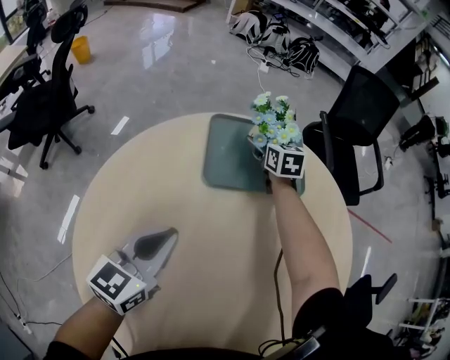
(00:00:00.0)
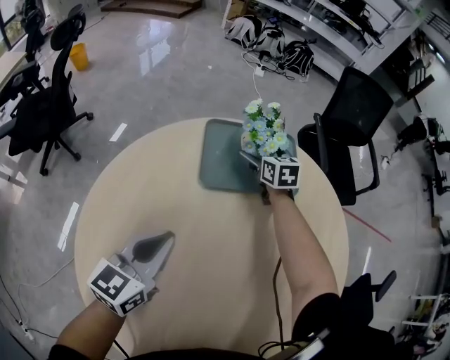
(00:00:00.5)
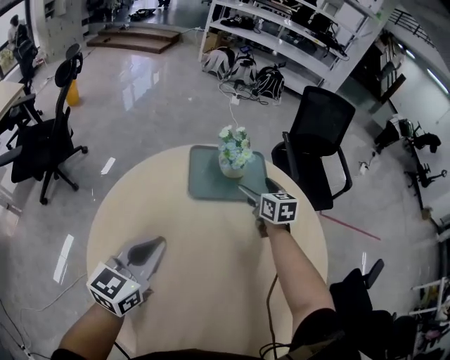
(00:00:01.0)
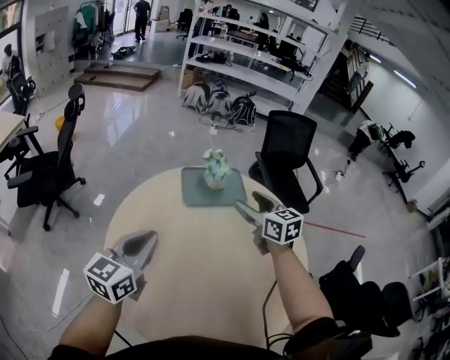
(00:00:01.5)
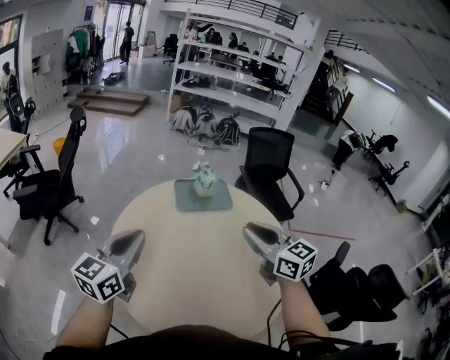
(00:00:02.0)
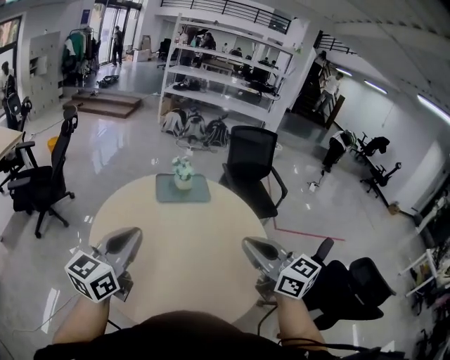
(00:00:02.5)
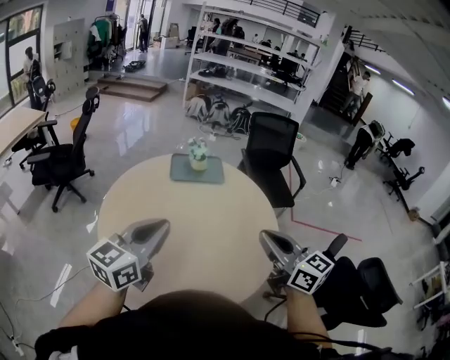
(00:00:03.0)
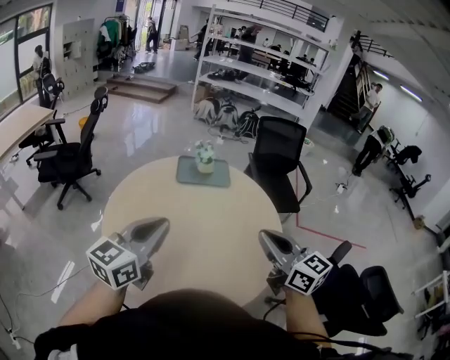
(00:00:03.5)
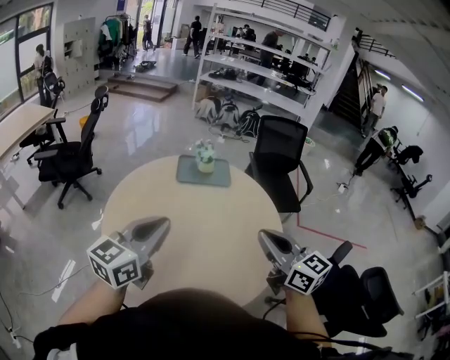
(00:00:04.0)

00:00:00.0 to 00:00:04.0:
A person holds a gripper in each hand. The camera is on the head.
00:00:00.0 to 00:00:02.0: The right gripper travels backward and upward by approximately 70 cm, rotates roughly 30 degrees, and closes up. Meanwhile the left gripper travels upward and backward by about 40 cm.
00:00:02.0 to 00:00:04.0: The right gripper goes approximately 20 cm backward and to the right, while the left gripper shifts about 25 cm to the right and backward.

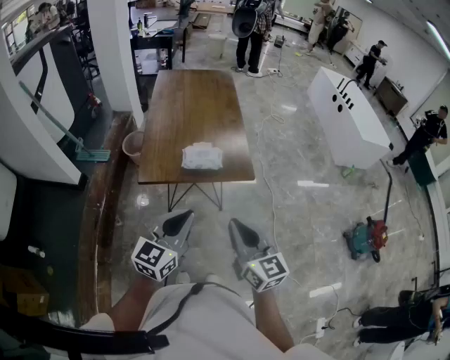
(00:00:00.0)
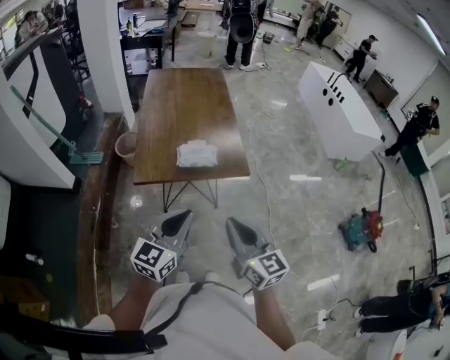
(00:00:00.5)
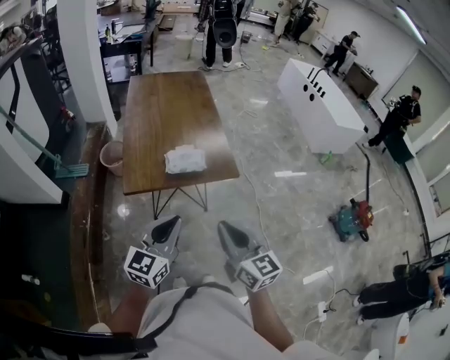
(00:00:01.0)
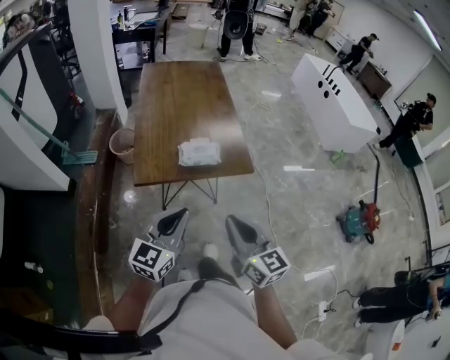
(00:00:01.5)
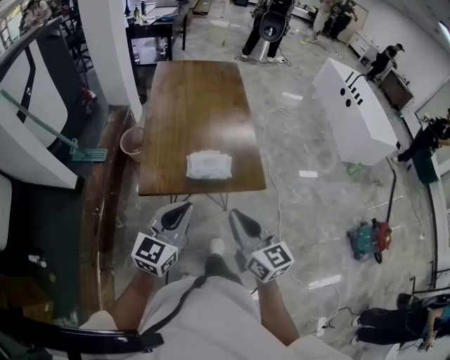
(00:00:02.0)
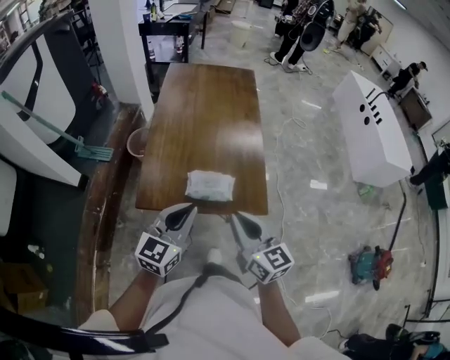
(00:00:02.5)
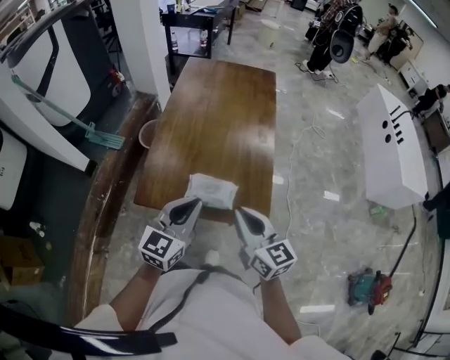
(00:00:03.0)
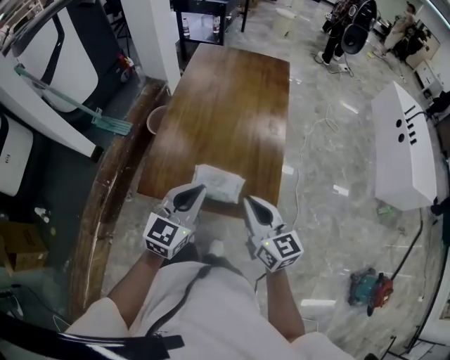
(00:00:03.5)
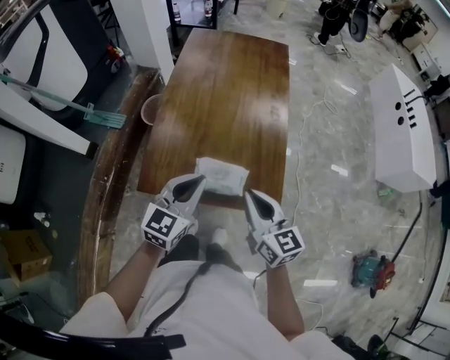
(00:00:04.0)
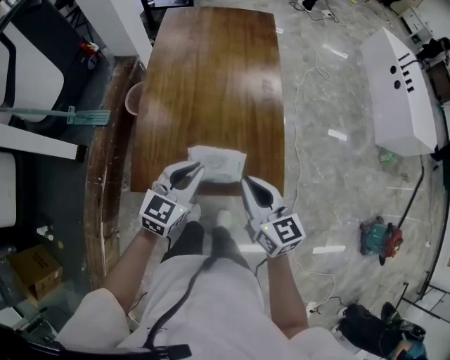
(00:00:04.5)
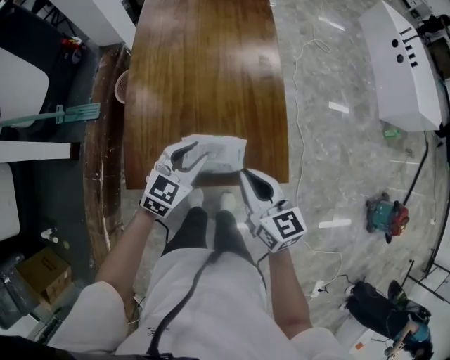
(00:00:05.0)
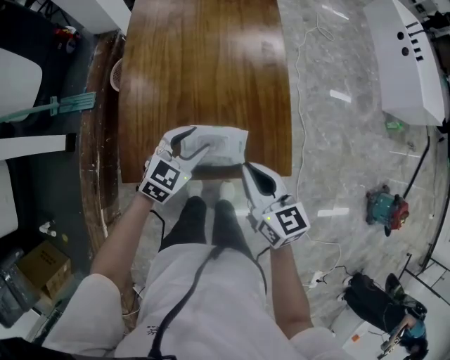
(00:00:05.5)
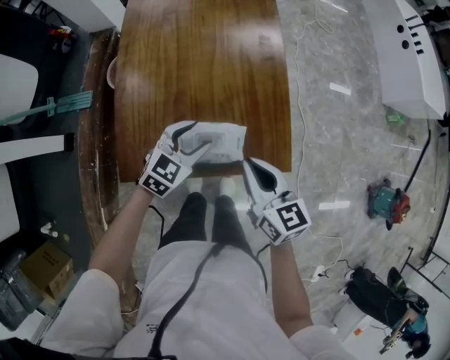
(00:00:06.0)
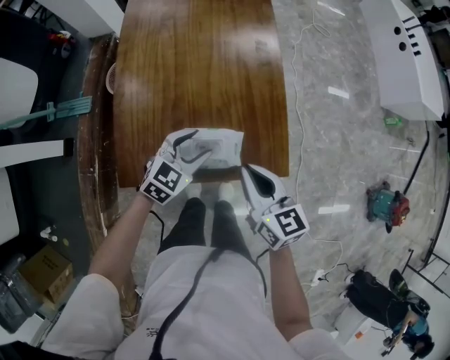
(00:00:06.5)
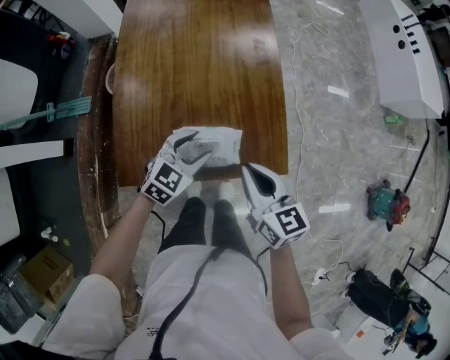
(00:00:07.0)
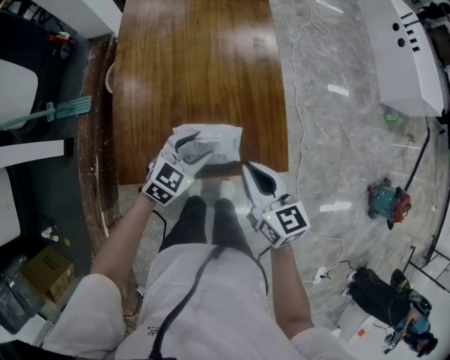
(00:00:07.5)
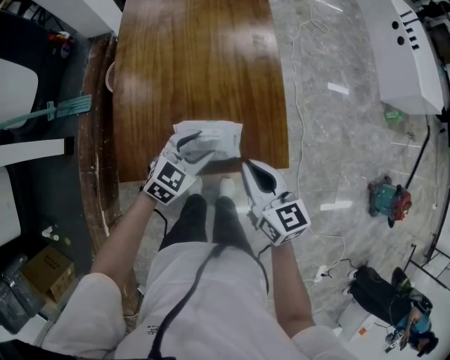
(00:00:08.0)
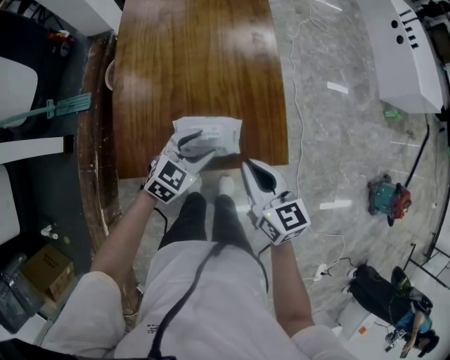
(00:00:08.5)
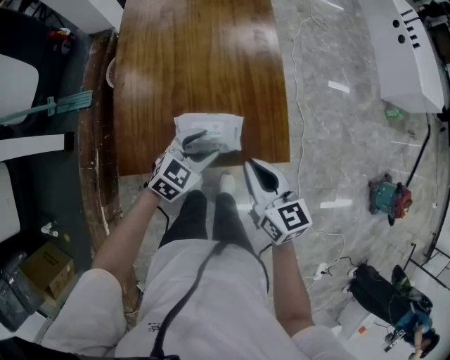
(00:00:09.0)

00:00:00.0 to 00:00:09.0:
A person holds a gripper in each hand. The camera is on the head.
00:00:00.0 to 00:00:02.0: Both grippers travel together forward, about 15 cm.
00:00:02.0 to 00:00:04.5: The left gripper goes approximately 25 cm forward and downward. The right gripper shifts about 25 cm forward.
00:00:04.5 to 00:00:07.0: The left gripper travels downward by roughly 15 cm, rotates about 20 degrees, and opens its fingers. The right gripper moves downward, approximately 5 cm.
00:00:07.0 to 00:00:09.0: The grippers stay close to where they were, moving slightly.

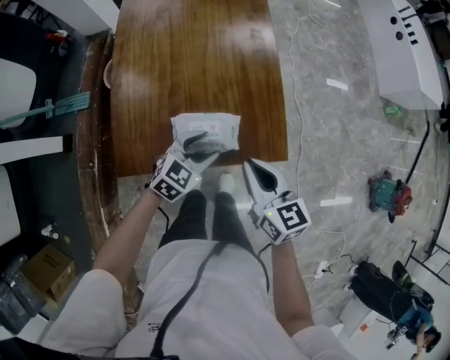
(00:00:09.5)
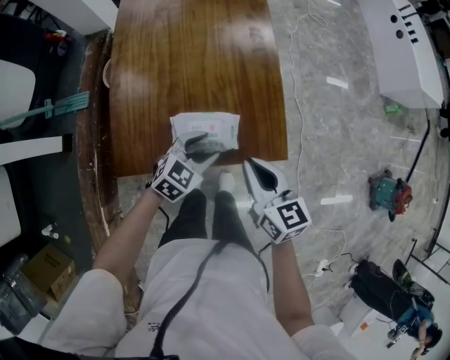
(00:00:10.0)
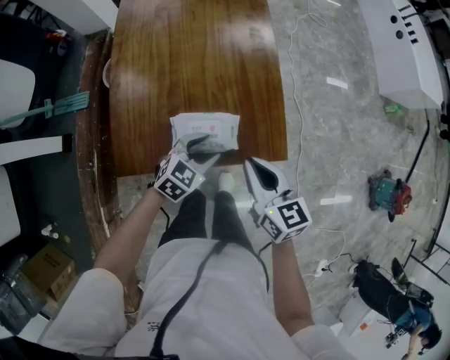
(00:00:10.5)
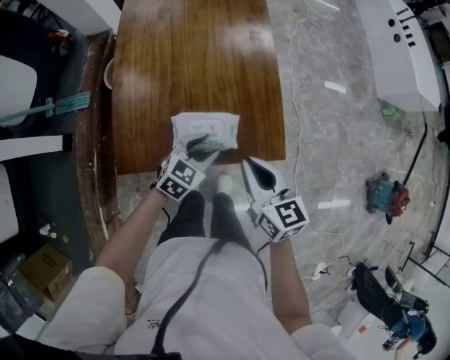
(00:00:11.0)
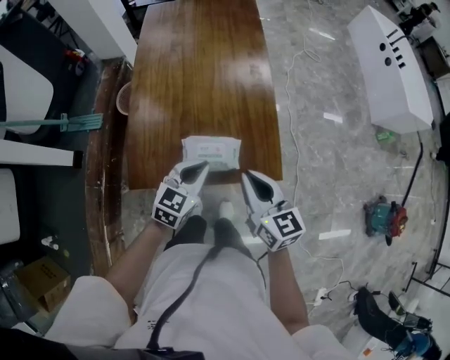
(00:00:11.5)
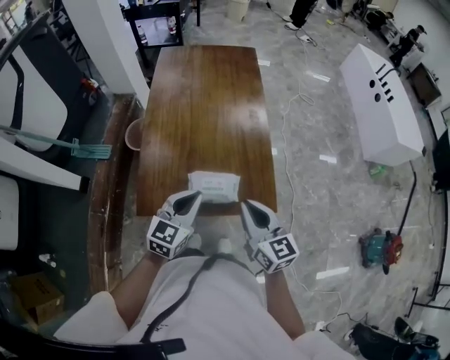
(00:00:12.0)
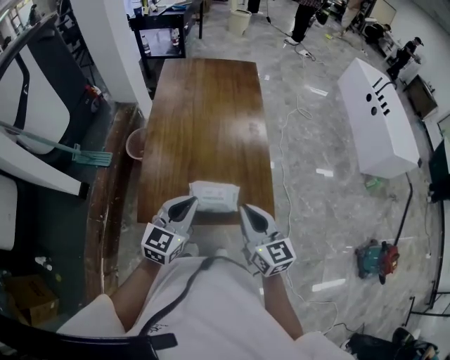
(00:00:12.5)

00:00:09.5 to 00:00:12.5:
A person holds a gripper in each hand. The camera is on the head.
00:00:09.5 to 00:00:11.0: The grippers move only a little.
00:00:11.0 to 00:00:12.5: The left gripper shifts roughly 20 cm upward, rotates roughly 30 degrees, and closes up, while the right gripper is displaced upward by about 10 cm.

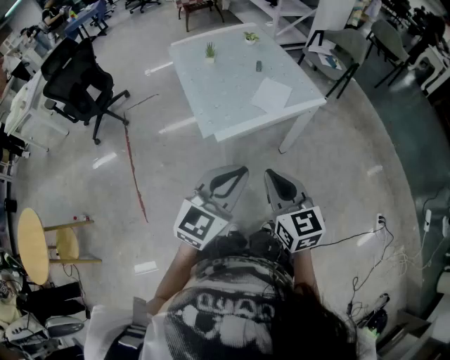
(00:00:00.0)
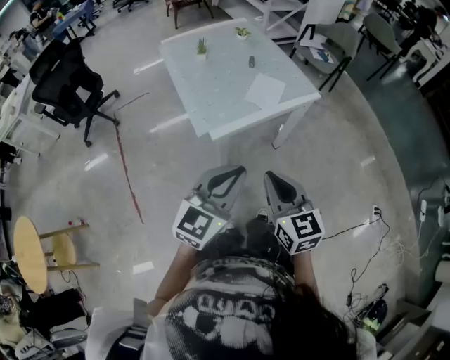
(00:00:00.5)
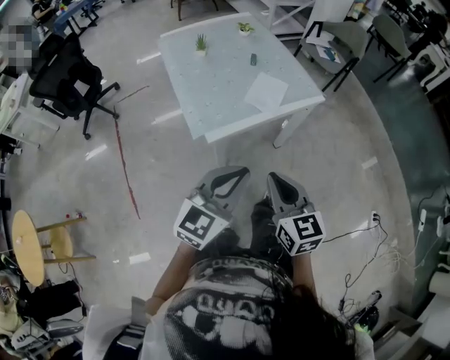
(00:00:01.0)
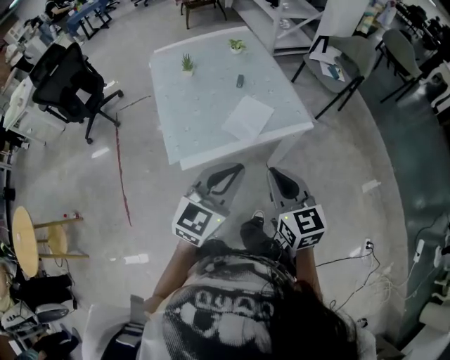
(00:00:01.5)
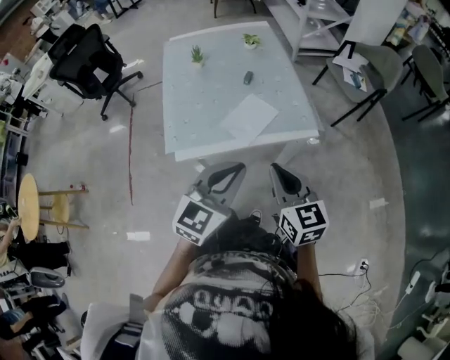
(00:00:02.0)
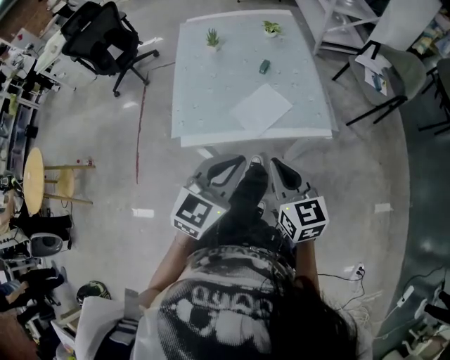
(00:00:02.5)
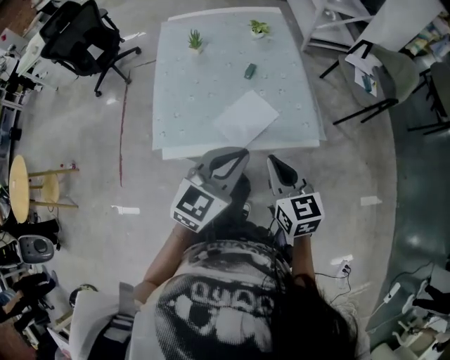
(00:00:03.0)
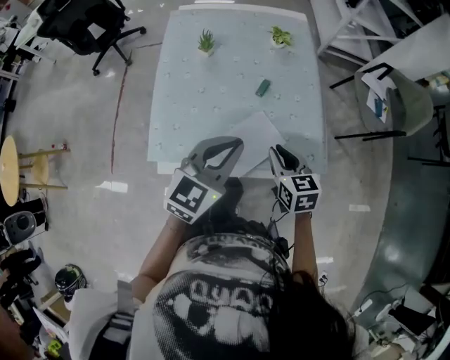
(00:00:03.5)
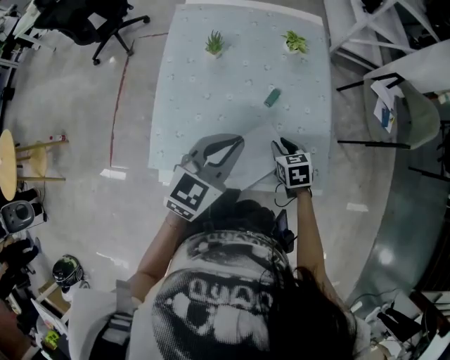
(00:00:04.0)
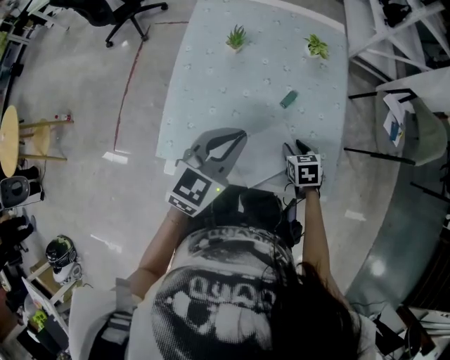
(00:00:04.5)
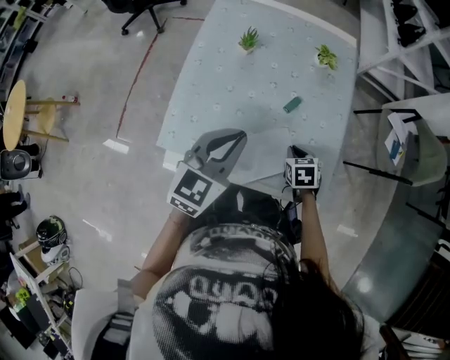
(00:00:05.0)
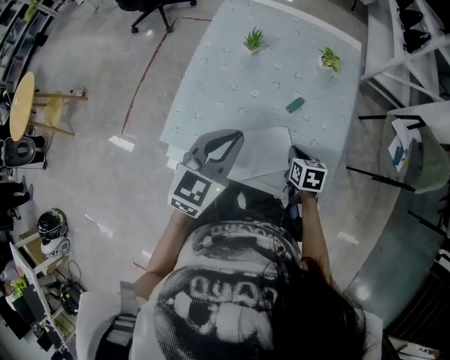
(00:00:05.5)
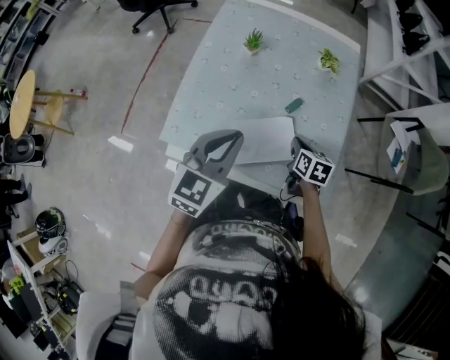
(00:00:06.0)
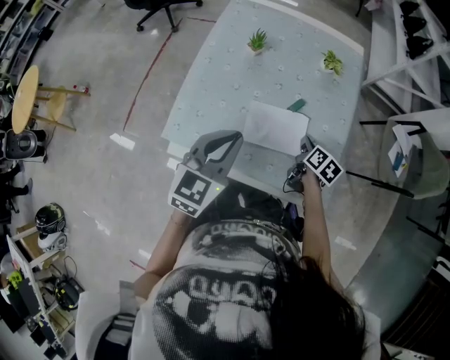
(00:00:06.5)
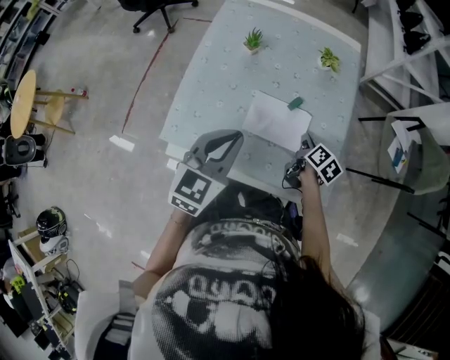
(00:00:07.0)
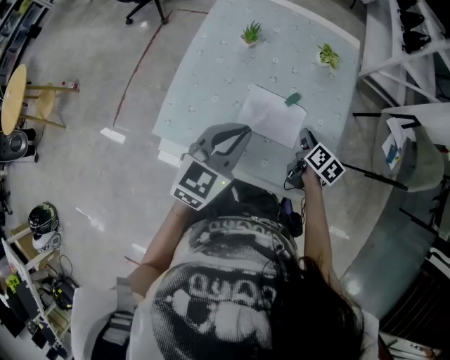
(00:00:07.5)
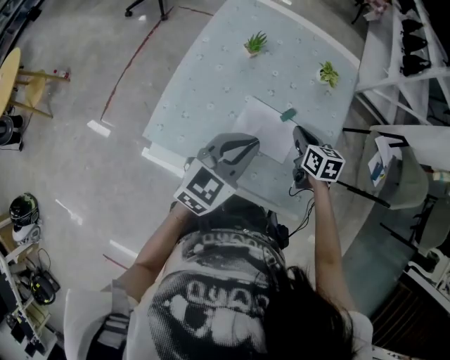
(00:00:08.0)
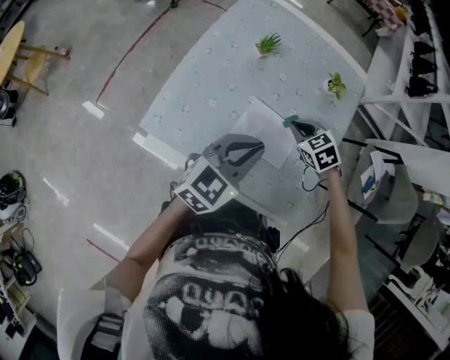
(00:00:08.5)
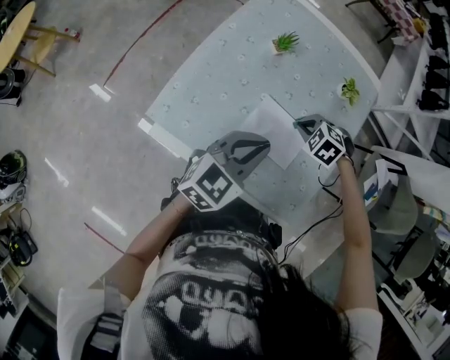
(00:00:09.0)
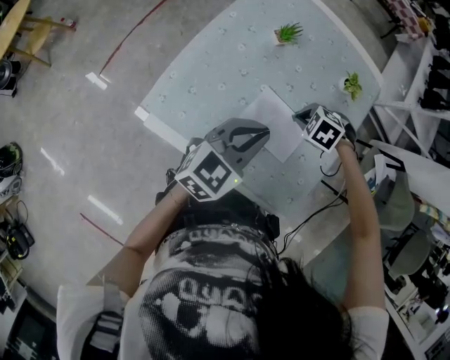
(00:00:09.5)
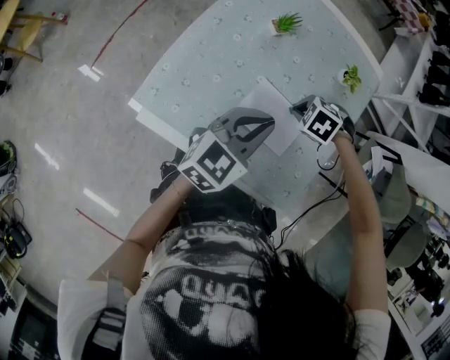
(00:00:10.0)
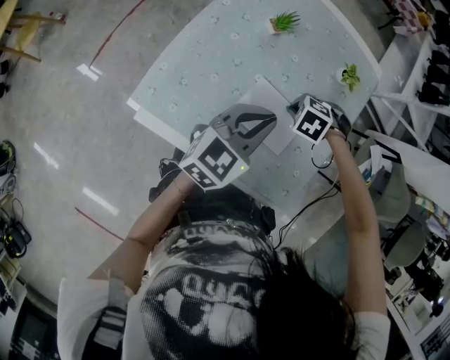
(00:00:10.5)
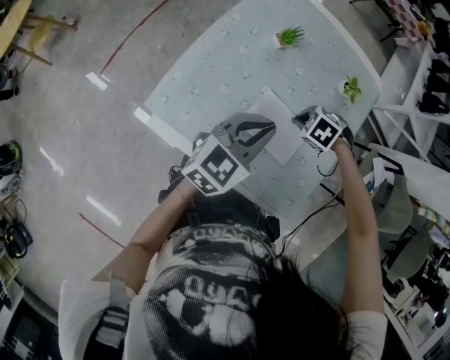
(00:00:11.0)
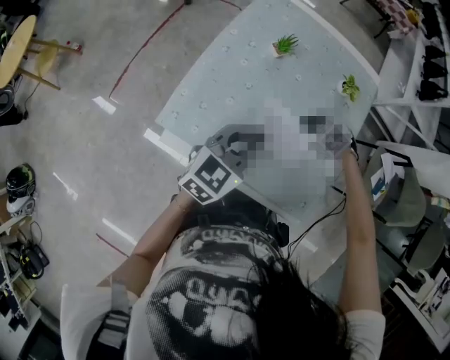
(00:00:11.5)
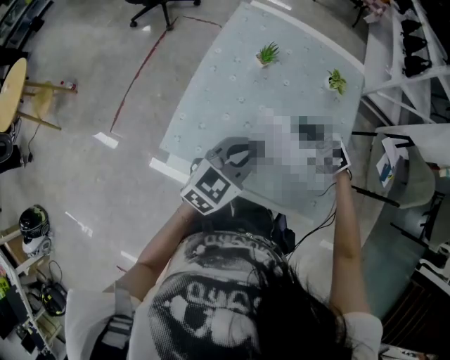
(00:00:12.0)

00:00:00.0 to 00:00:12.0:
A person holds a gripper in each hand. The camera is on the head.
00:00:00.0 to 00:00:02.0: Both grippers travel together forward and to the right, roughly 30 cm.
00:00:02.0 to 00:00:04.0: The left gripper travels forward by some 30 cm; the right gripper moves forward and downward, approximately 40 cm, points its fingers roughly 40 degrees further downward, and opens.
00:00:04.0 to 00:00:06.0: The right gripper closes.
00:00:06.0 to 00:00:08.0: The right gripper shifts approximately 10 cm forward. Meanwhile the left gripper moves about 5 cm.
00:00:08.0 to 00:00:10.0: The right gripper moves roughly 5 cm, and rolls counterclockwise, seen from behind, by some 70 degrees. The left gripper ends up roughly 5 cm from where it was.
00:00:10.0 to 00:00:12.0: The right gripper travels upward by some 10 cm, and rotates about 50 degrees; the left gripper moves roughly 5 cm.
